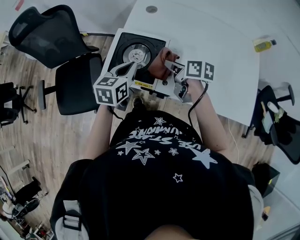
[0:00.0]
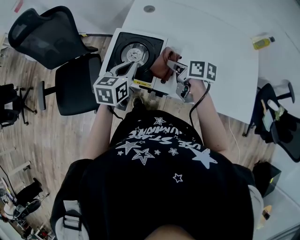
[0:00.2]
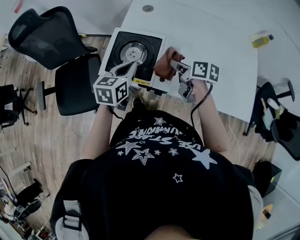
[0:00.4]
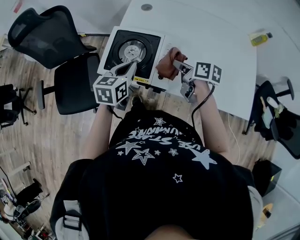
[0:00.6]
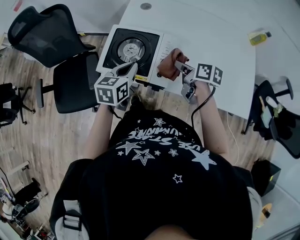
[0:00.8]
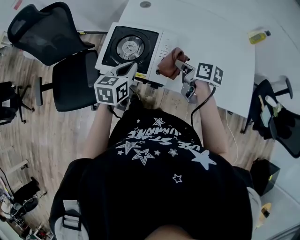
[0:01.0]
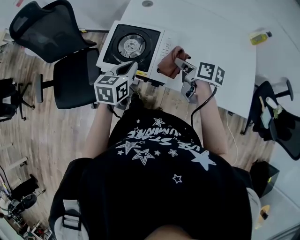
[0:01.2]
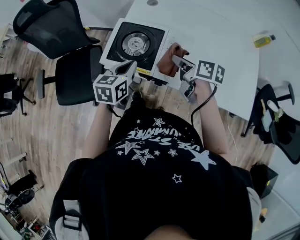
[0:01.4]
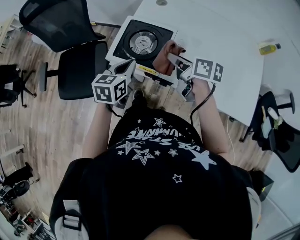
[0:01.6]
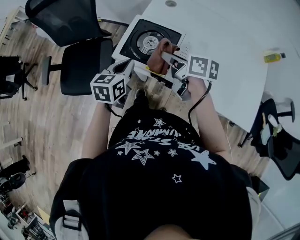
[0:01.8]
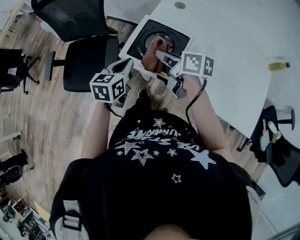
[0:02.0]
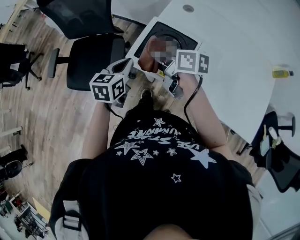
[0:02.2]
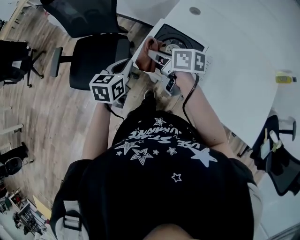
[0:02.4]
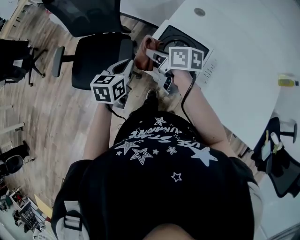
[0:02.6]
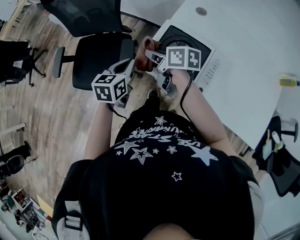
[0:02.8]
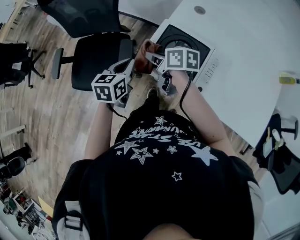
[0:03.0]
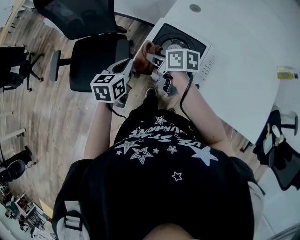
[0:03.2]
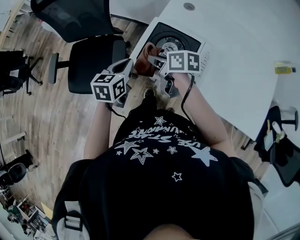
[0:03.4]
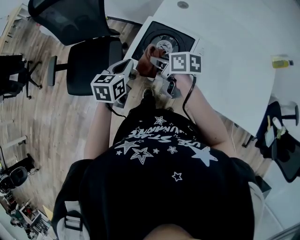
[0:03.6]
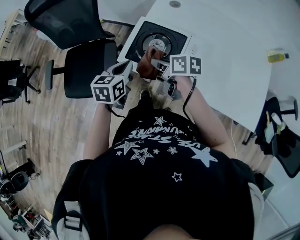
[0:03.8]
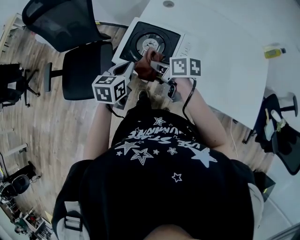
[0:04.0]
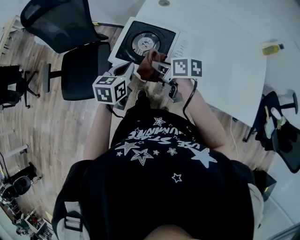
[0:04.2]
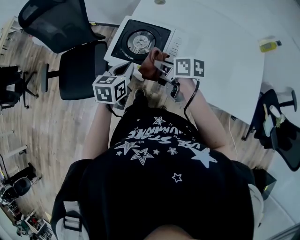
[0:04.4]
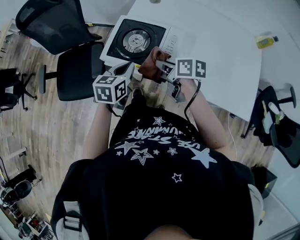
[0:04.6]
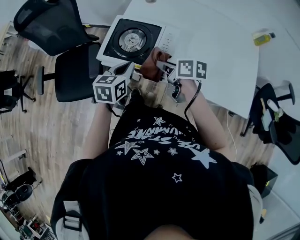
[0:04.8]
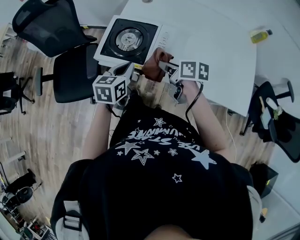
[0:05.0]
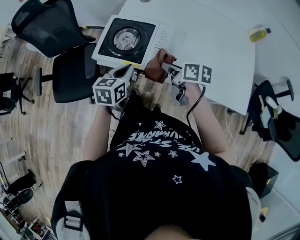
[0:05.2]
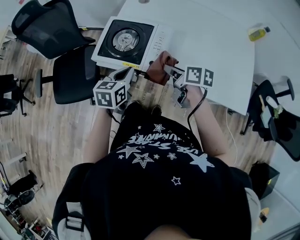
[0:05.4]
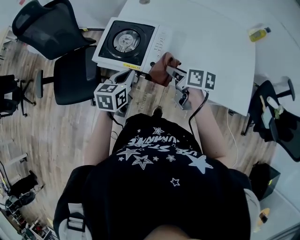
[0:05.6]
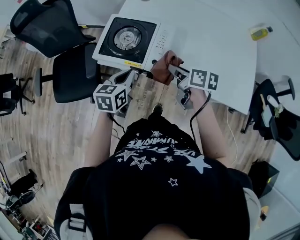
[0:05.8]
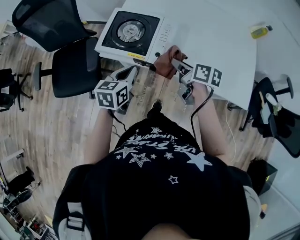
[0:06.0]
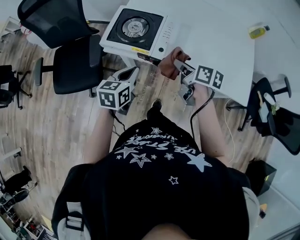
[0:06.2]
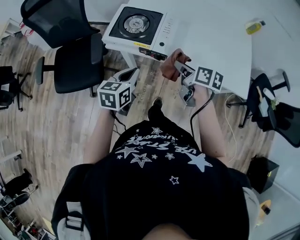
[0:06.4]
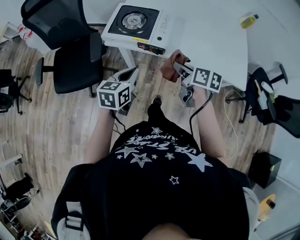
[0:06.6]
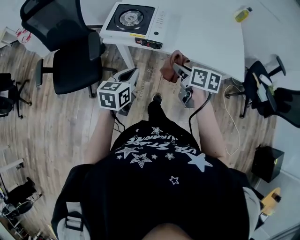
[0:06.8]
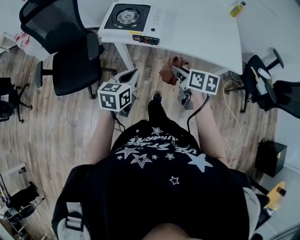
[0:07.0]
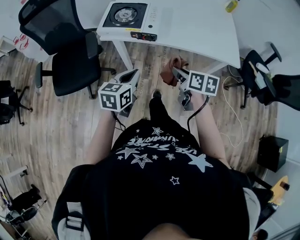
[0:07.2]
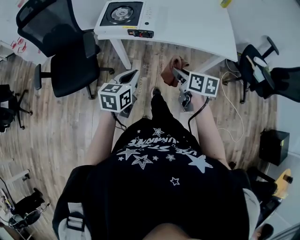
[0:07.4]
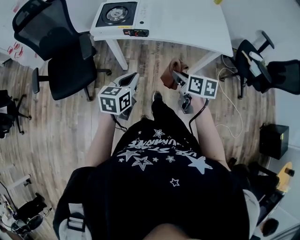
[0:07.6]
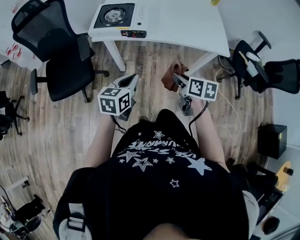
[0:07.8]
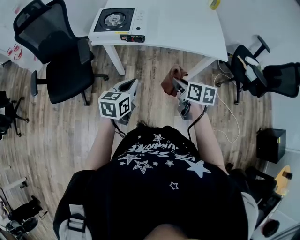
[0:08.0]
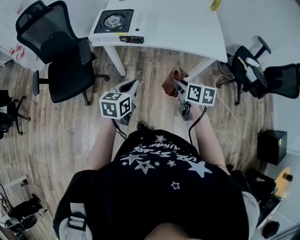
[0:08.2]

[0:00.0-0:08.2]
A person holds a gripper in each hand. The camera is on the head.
0:00.0 to 0:01.6: The right gripper travels upward by roughly 5 cm, and moves about 5 cm to the right and comes back, while the left gripper moves backward, some 5 cm.
0:01.6 to 0:03.2: Both grippers travel together to the left and forward, about 20 cm.
0:03.2 to 0:05.0: Both grippers travel together to the right and backward, some 25 cm.
0:05.0 to 0:06.6: Both grippers move backward, some 15 cm.
0:06.6 to 0:08.2: The two grippers go some 20 cm backward and to the right.

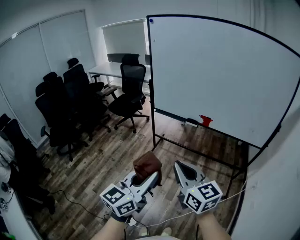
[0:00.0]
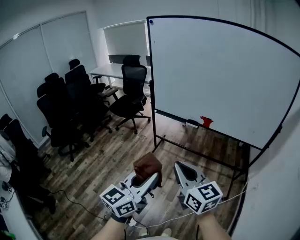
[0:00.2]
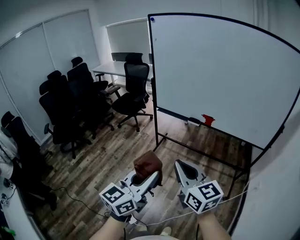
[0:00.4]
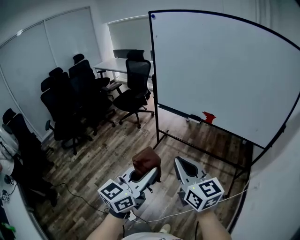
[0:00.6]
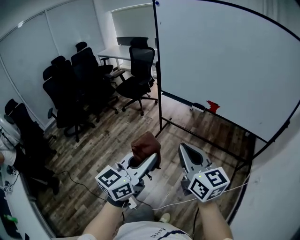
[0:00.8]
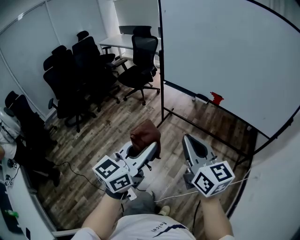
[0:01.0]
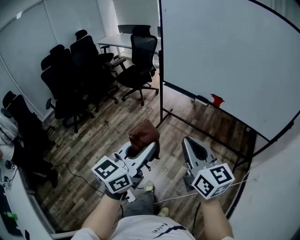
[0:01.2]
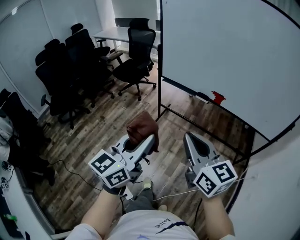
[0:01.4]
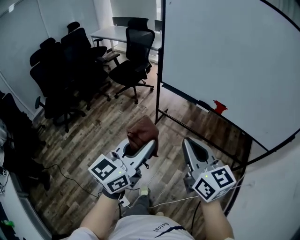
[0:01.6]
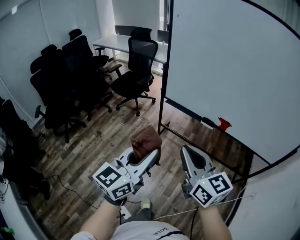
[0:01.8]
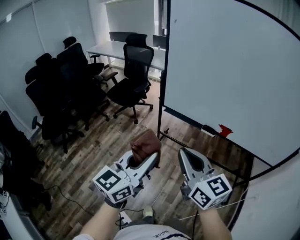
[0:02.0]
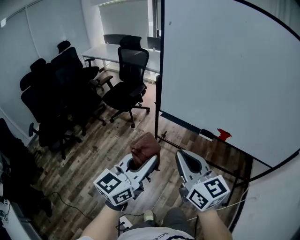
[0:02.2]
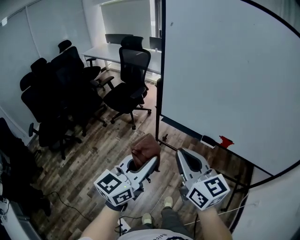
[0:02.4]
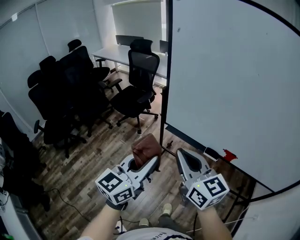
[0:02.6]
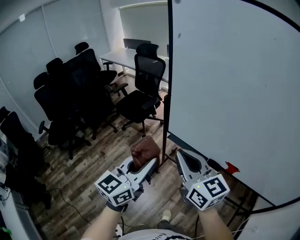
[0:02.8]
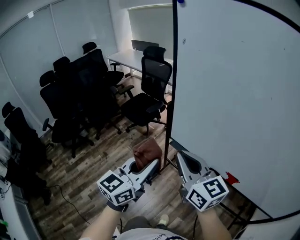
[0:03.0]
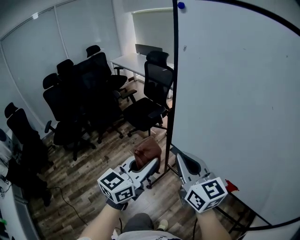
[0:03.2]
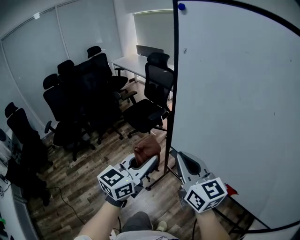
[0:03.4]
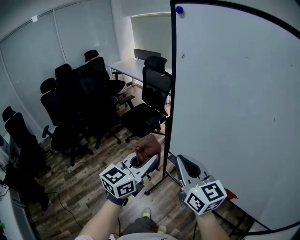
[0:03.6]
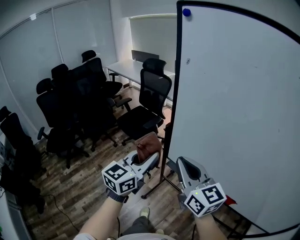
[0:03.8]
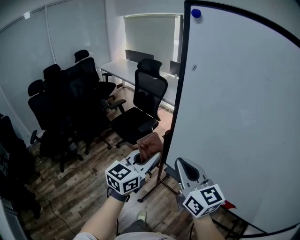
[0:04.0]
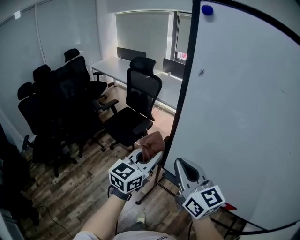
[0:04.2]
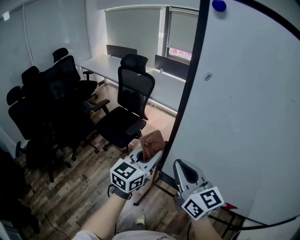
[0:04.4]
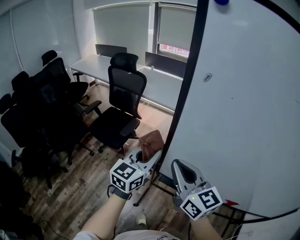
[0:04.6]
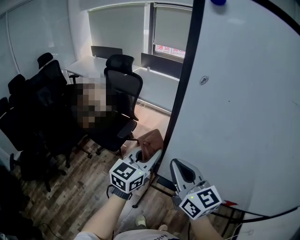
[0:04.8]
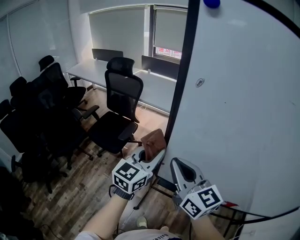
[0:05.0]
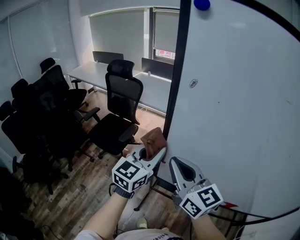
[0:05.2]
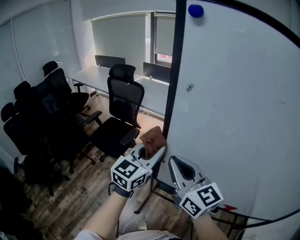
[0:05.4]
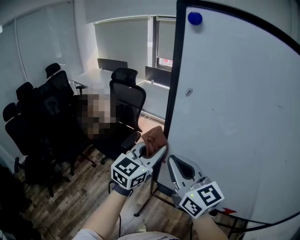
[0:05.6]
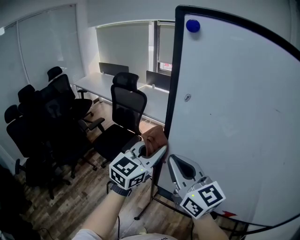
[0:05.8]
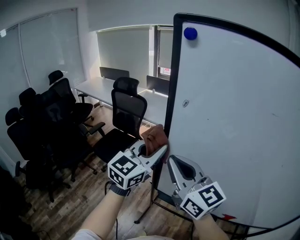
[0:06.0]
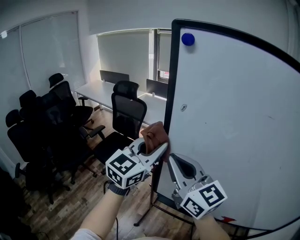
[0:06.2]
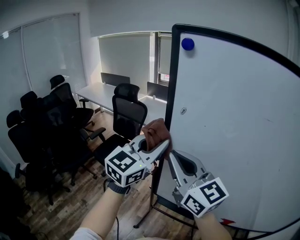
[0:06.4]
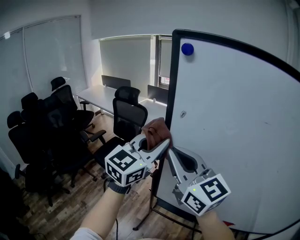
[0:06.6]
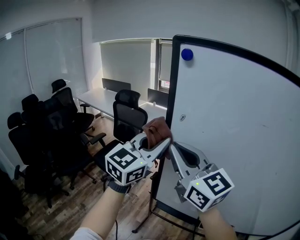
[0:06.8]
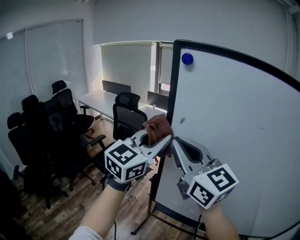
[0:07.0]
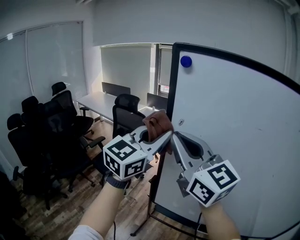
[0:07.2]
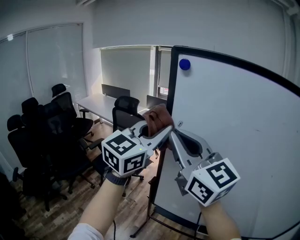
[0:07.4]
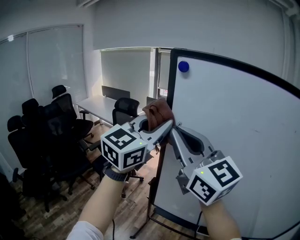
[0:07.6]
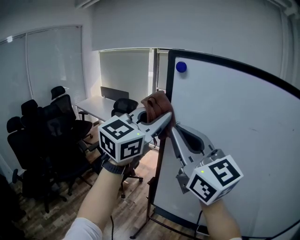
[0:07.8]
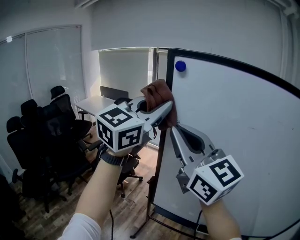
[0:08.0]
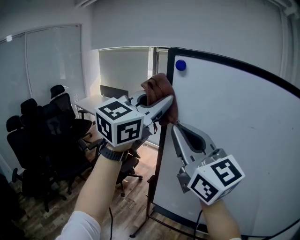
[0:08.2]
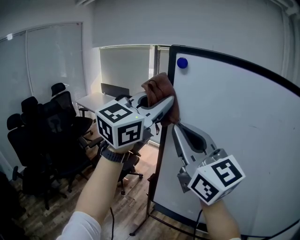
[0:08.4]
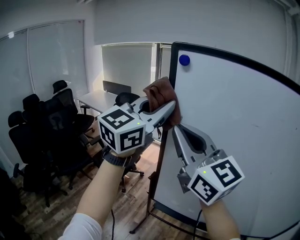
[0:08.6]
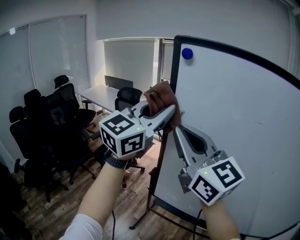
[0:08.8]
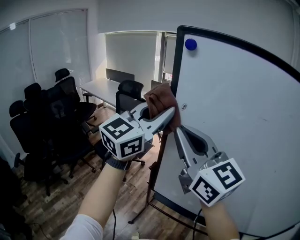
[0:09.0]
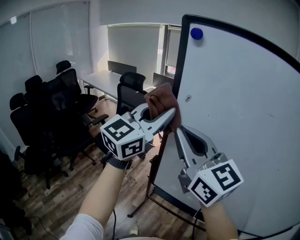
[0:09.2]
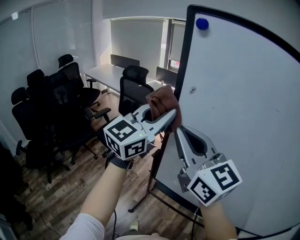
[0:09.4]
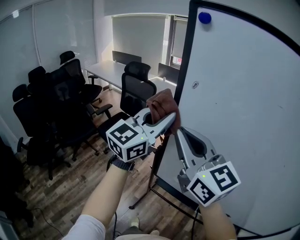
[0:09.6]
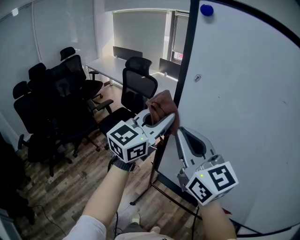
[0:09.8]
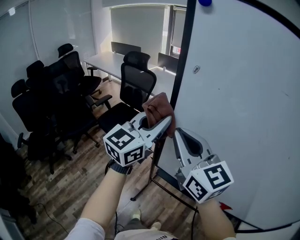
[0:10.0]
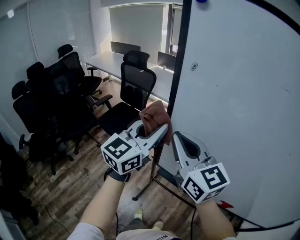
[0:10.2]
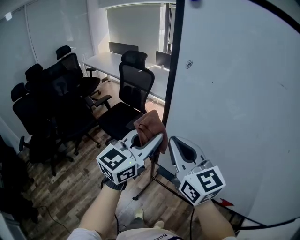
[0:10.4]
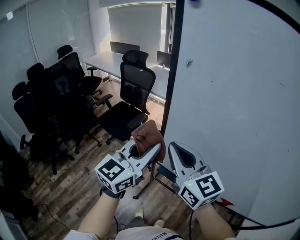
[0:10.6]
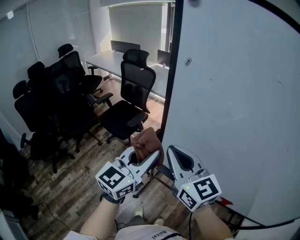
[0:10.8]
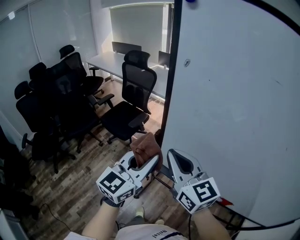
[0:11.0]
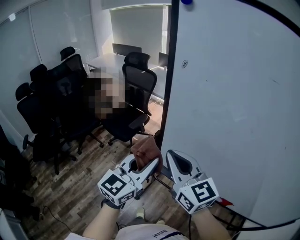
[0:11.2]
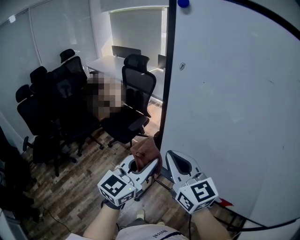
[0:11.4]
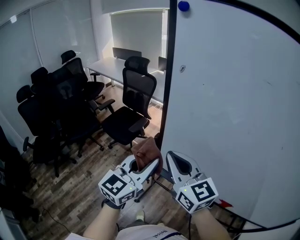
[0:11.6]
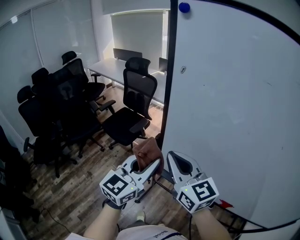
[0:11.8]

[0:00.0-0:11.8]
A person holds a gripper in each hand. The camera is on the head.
0:00.0 to 0:01.4: The two grippers go roughly 10 cm forward.
0:01.4 to 0:03.0: Both grippers are carried forward, some 40 cm.
0:03.0 to 0:04.4: The grippers both shift forward by approximately 25 cm.
0:04.4 to 0:06.0: The grippers both shift upward by about 10 cm.
0:06.0 to 0:07.4: The two grippers go about 15 cm upward.
0:07.4 to 0:08.8: The left gripper goes about 5 cm upward.
0:08.8 to 0:10.4: The grippers both shift downward by approximately 25 cm.
0:10.4 to 0:11.8: The left gripper heads backward, covering some 10 cm. The right gripper changes place by roughly 5 cm.

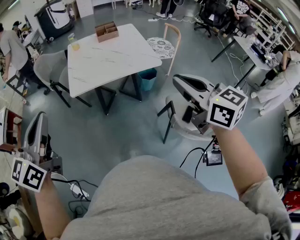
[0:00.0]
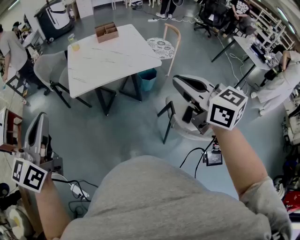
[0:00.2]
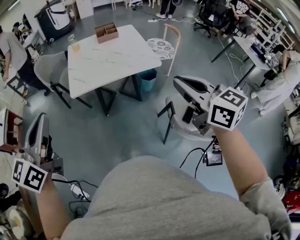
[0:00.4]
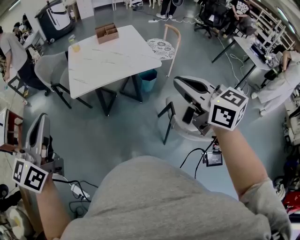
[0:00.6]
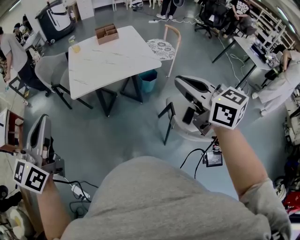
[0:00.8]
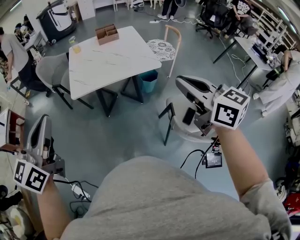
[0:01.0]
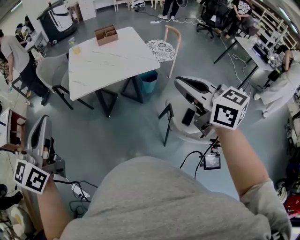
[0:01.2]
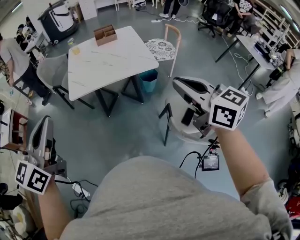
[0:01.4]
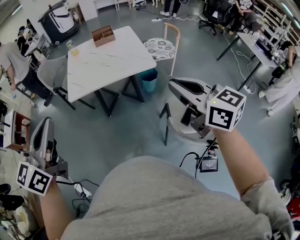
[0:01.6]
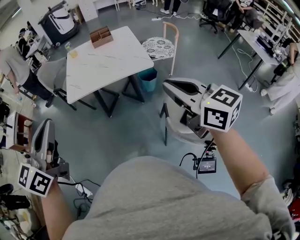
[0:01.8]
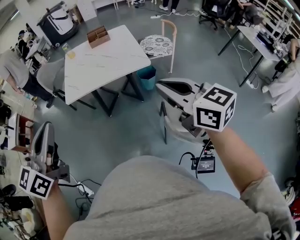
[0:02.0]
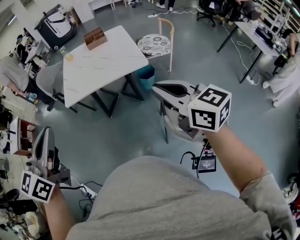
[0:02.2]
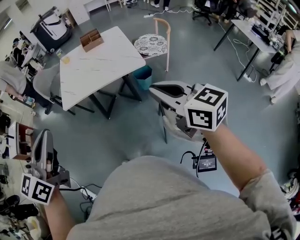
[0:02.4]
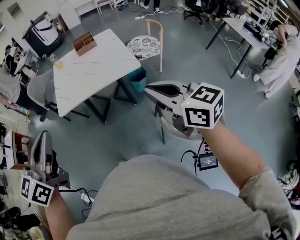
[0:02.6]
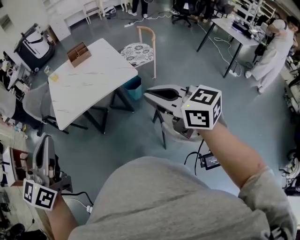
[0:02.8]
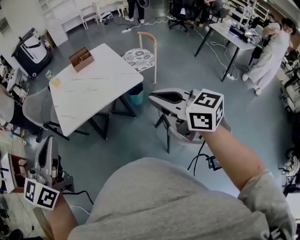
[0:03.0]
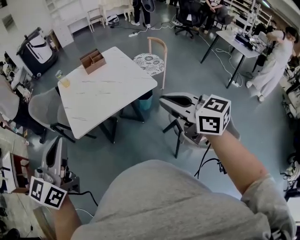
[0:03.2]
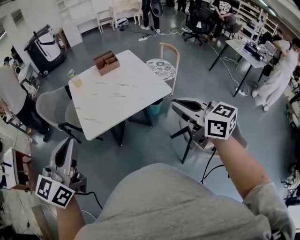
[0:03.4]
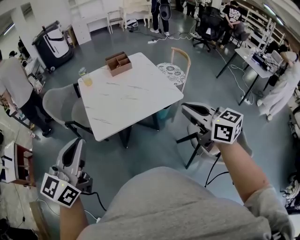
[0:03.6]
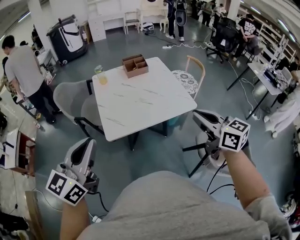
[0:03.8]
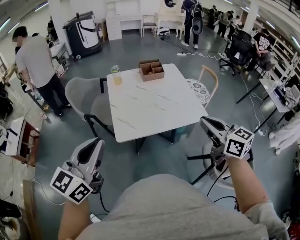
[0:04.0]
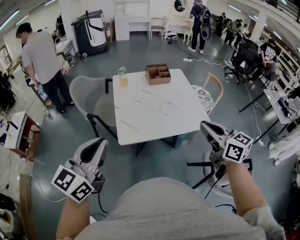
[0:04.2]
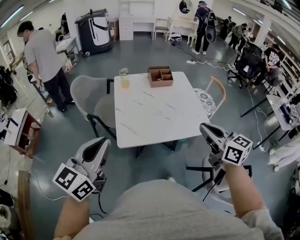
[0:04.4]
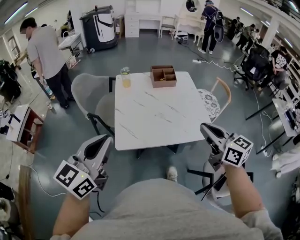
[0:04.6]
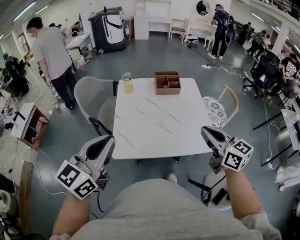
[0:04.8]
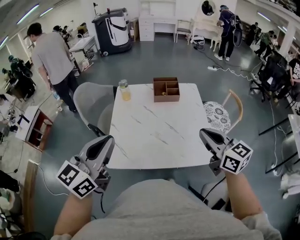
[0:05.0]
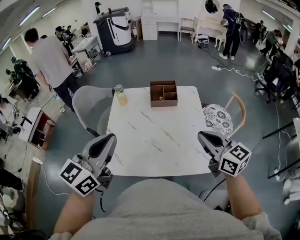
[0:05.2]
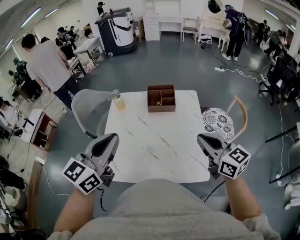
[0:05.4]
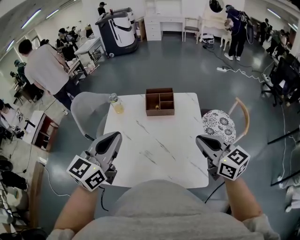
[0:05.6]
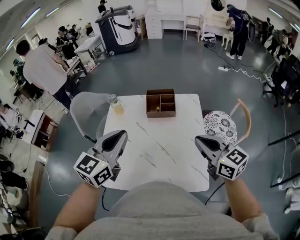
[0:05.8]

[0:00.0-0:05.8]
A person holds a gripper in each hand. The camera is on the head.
0:00.0 to 0:01.4: Both grippers move to the right, about 5 cm.
0:01.4 to 0:02.8: The left gripper is displaced to the right by approximately 5 cm; the right gripper ends up approximately 5 cm from where it was.
0:02.8 to 0:04.4: The left gripper moves to the left and forward, about 30 cm, while the right gripper heads forward and to the left, covering about 30 cm.
0:04.4 to 0:05.8: Both grippers move forward and to the right, approximately 40 cm.
